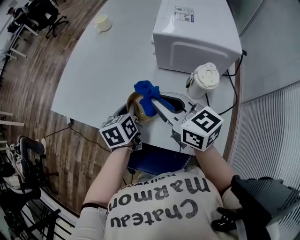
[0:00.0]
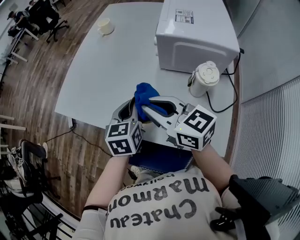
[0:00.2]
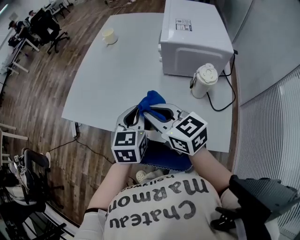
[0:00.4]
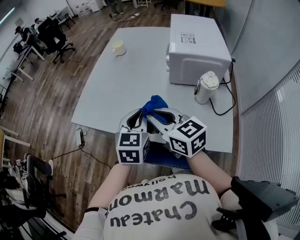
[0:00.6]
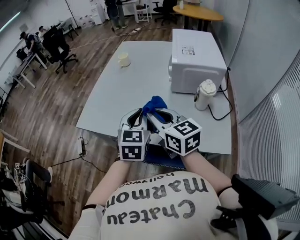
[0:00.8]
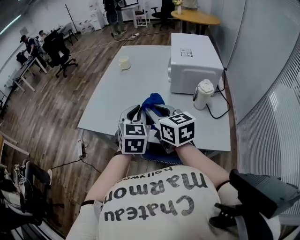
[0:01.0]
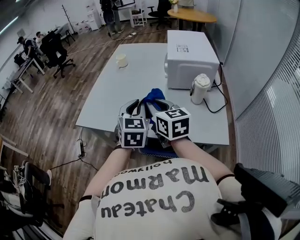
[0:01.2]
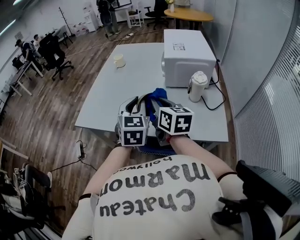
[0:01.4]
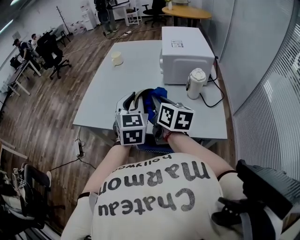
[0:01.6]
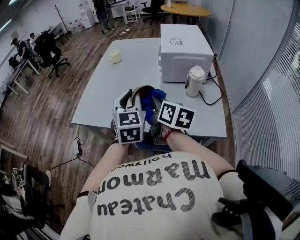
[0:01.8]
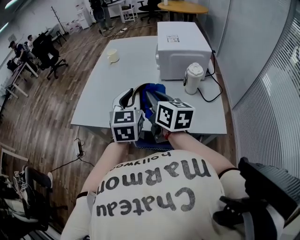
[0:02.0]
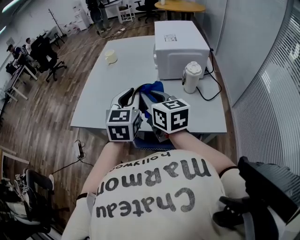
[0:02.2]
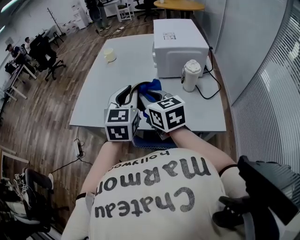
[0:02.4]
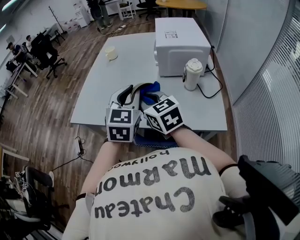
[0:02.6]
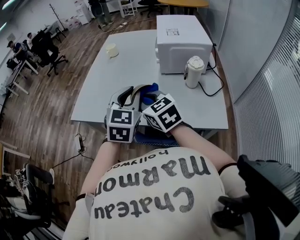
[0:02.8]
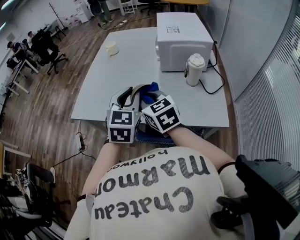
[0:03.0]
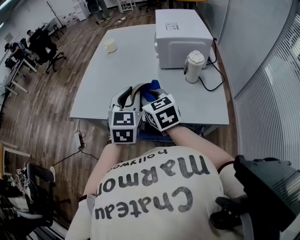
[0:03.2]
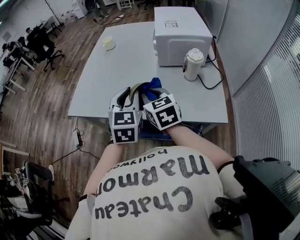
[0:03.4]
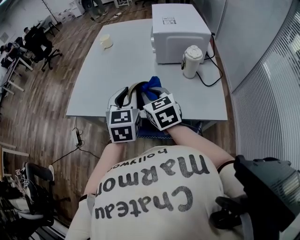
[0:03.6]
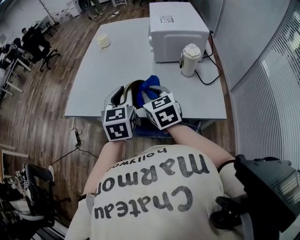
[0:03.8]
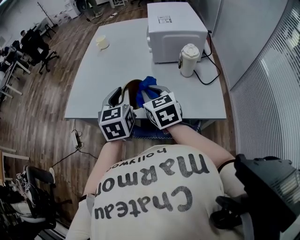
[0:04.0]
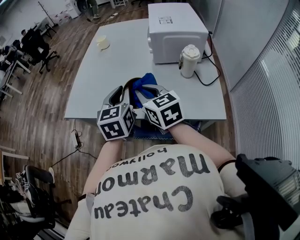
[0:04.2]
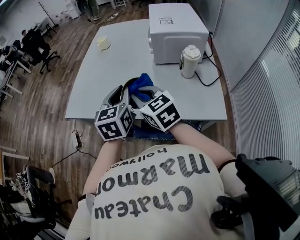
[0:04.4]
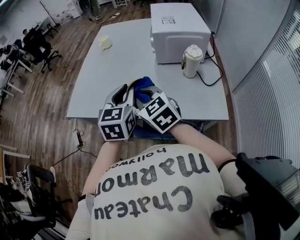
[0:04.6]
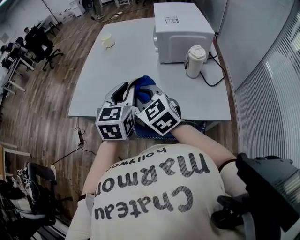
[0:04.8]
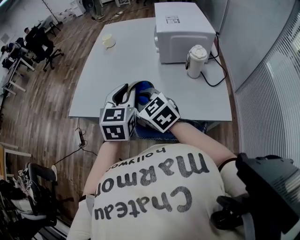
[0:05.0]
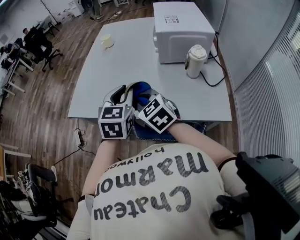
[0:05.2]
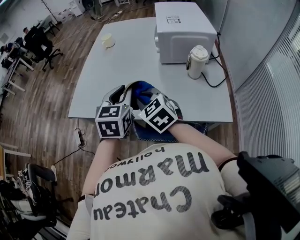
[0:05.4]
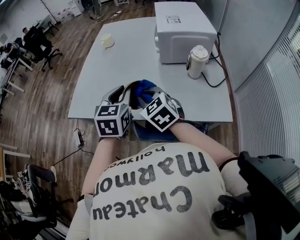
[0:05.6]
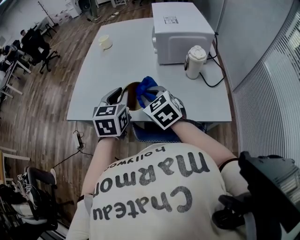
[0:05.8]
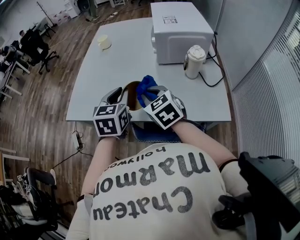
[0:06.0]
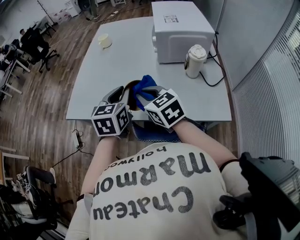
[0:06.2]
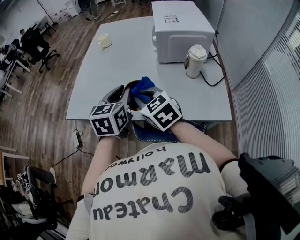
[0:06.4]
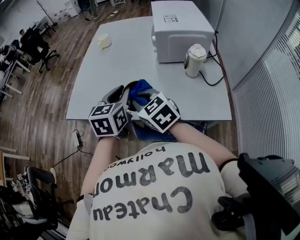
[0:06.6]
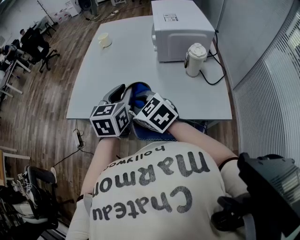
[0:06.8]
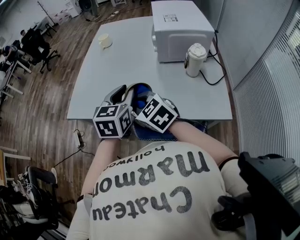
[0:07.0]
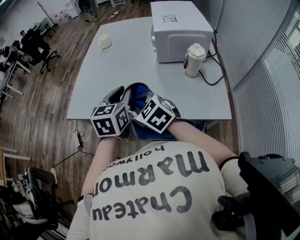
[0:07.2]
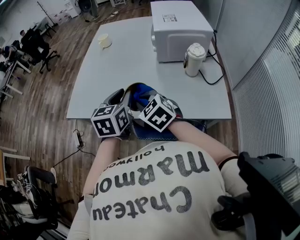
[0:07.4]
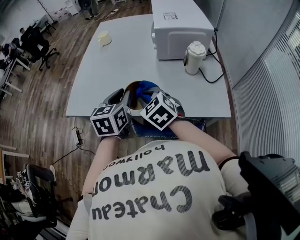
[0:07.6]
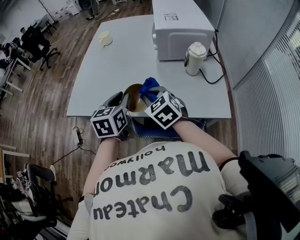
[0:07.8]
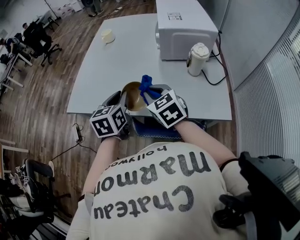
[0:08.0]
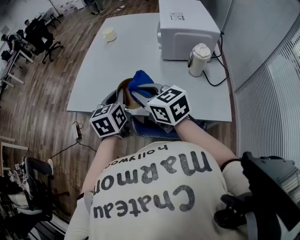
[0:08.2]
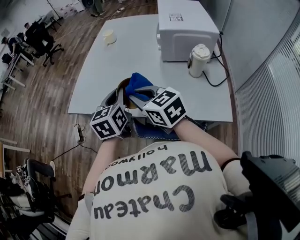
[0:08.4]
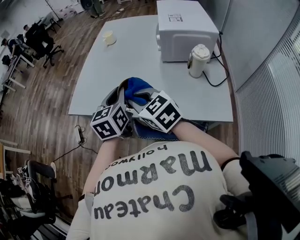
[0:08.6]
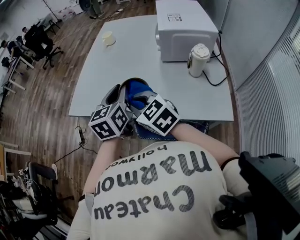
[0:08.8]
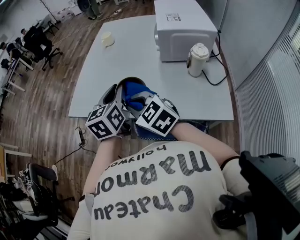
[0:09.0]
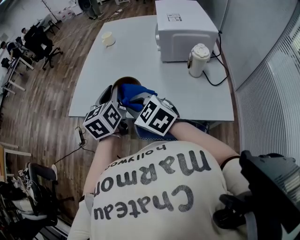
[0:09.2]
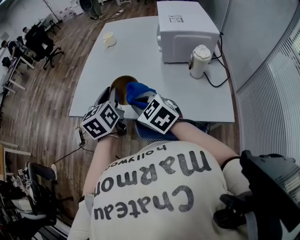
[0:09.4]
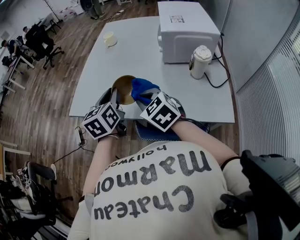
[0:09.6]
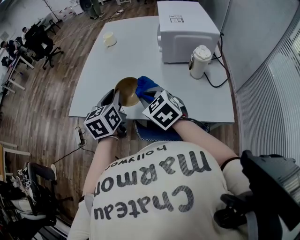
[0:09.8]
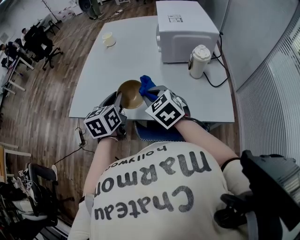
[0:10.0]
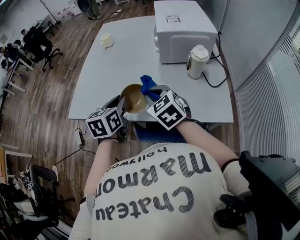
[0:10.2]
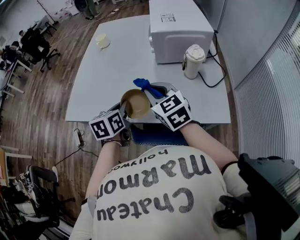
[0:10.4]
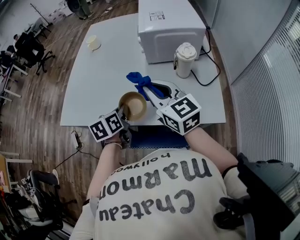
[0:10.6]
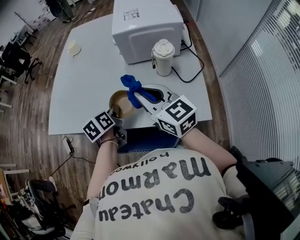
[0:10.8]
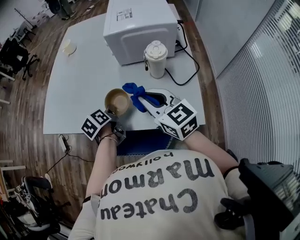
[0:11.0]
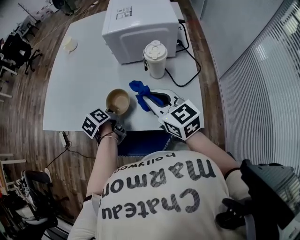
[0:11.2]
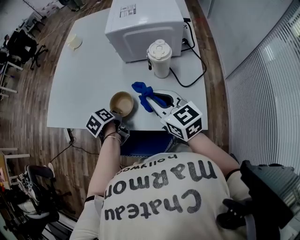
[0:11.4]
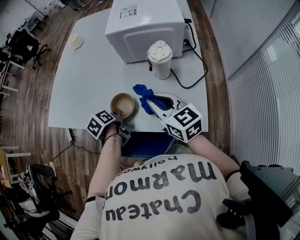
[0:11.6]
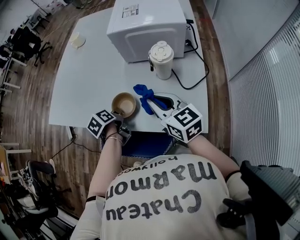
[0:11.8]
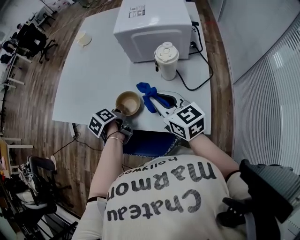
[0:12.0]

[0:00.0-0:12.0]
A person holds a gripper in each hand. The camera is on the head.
0:00.0 to 0:01.6: The right gripper goes approximately 10 cm to the left and backward, and turns by some 40 degrees, while the left gripper is displaced upward by approximately 20 cm, and rotates around the line of its fingers by roughly 40 degrees, clockwise from behind.
0:01.6 to 0:03.0: The right gripper travels to the left by about 5 cm, and turns by about 40 degrees.
0:03.0 to 0:04.4: The left gripper swivels roughly 20 degrees.
0:04.4 to 0:06.0: The right gripper shifts by about 5 cm.
0:07.6 to 0:09.0: The left gripper moves about 5 cm. The right gripper goes roughly 5 cm to the left.
0:09.0 to 0:10.4: The right gripper goes some 15 cm to the right, and changes its angle by approximately 20 degrees, while the left gripper moves downward, roughly 10 cm, and changes its angle by about 20 degrees.
0:10.4 to 0:12.0: The left gripper shifts some 15 cm downward and to the right, rotates around the line of its fingers by some 40 degrees, counterclockwise from behind, and opens up, while the right gripper is displaced to the right by roughly 15 cm, and changes its angle by some 20 degrees.

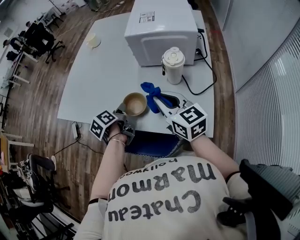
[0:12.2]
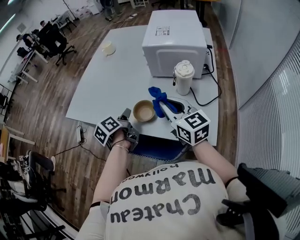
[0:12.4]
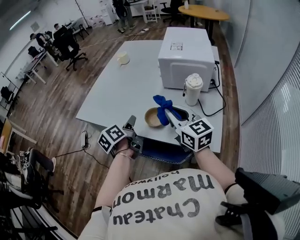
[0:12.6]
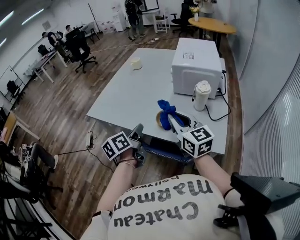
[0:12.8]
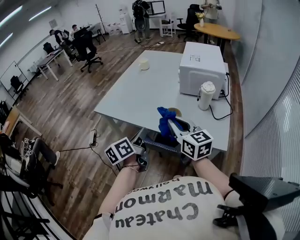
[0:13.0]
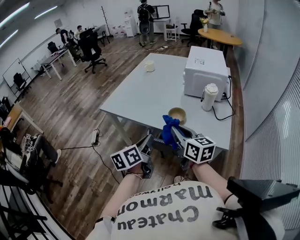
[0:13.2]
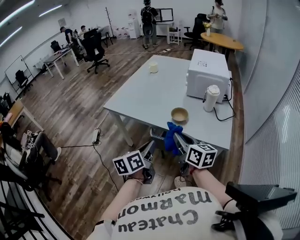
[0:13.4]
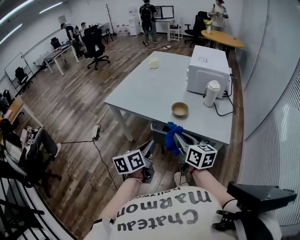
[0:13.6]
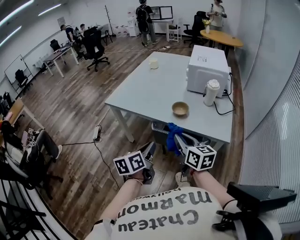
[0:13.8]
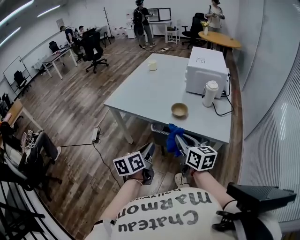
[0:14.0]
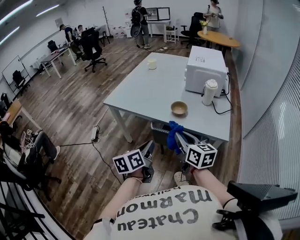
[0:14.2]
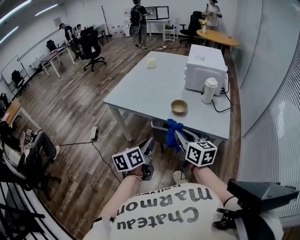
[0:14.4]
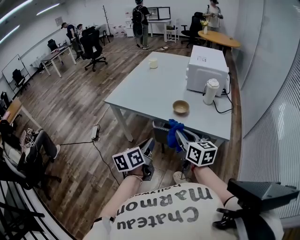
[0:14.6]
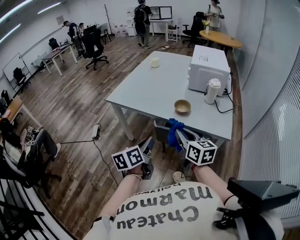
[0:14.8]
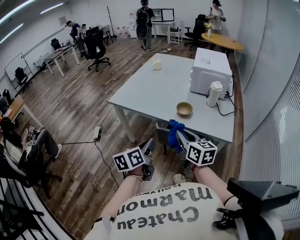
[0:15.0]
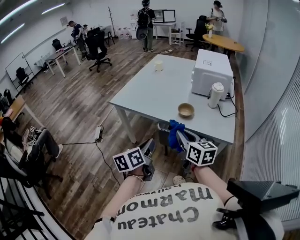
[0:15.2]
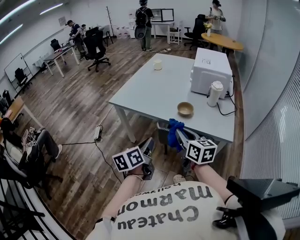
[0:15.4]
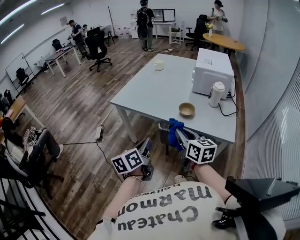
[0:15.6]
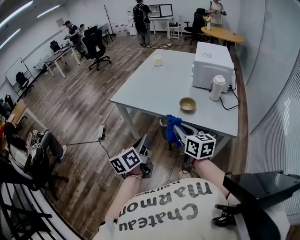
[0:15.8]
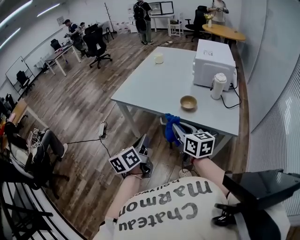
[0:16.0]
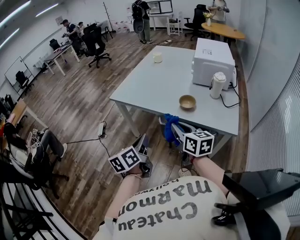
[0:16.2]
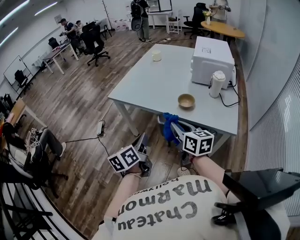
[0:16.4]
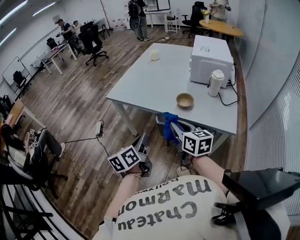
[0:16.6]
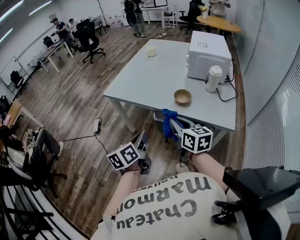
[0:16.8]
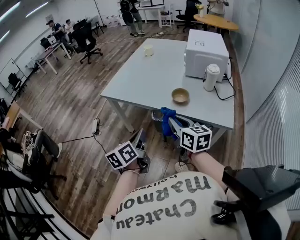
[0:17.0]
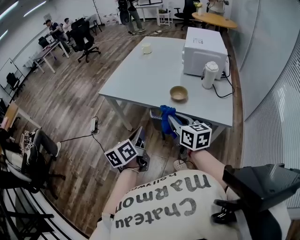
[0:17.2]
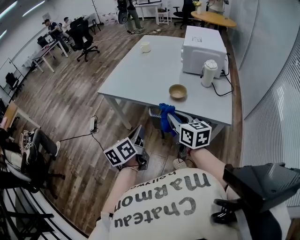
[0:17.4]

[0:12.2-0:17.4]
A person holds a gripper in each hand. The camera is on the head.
0:12.2 to 0:14.0: Both grippers move backward and to the left, some 30 cm. The left gripper changes its angle by about 30 degrees.
0:14.0 to 0:15.6: The right gripper ends up roughly 5 cm from where it was. Meanwhile the left gripper heads to the left, covering some 5 cm.
0:15.6 to 0:17.4: The grippers stay close to where they were, moving slightly.

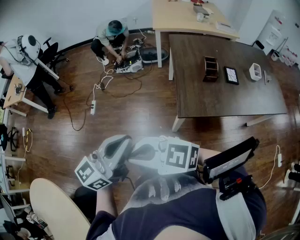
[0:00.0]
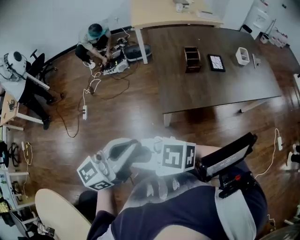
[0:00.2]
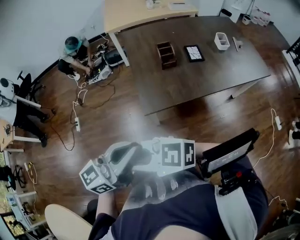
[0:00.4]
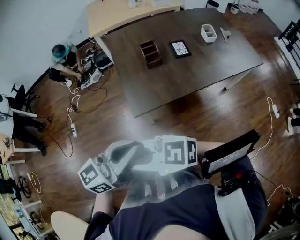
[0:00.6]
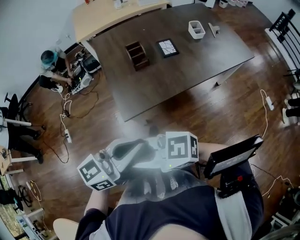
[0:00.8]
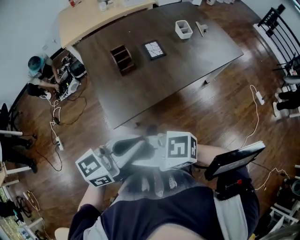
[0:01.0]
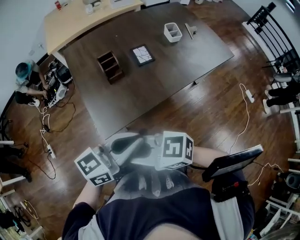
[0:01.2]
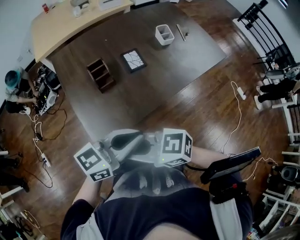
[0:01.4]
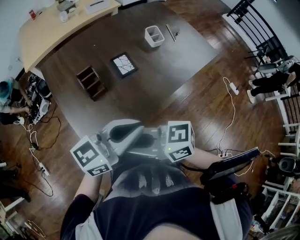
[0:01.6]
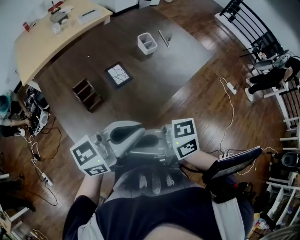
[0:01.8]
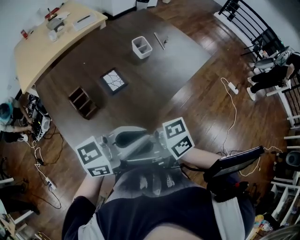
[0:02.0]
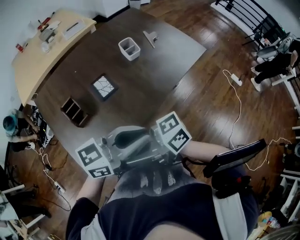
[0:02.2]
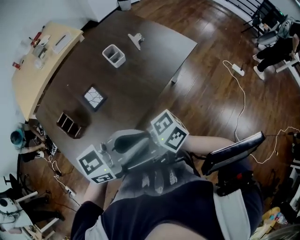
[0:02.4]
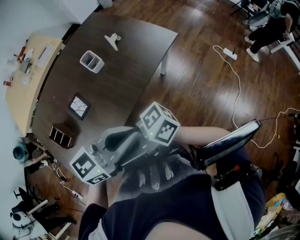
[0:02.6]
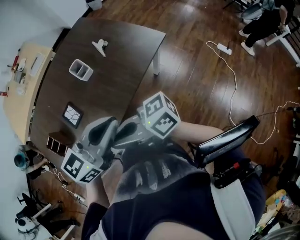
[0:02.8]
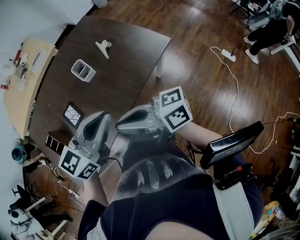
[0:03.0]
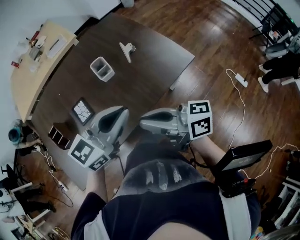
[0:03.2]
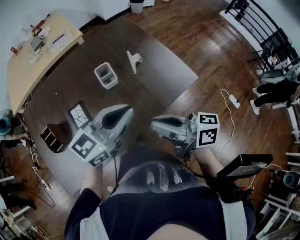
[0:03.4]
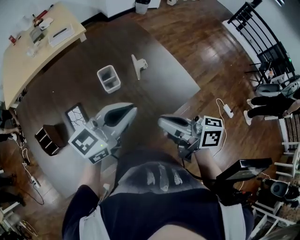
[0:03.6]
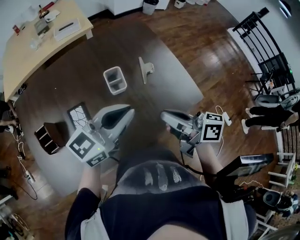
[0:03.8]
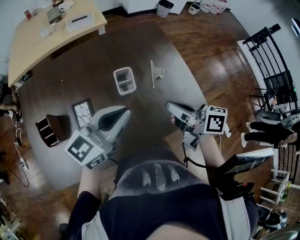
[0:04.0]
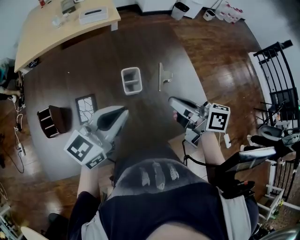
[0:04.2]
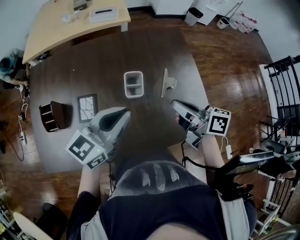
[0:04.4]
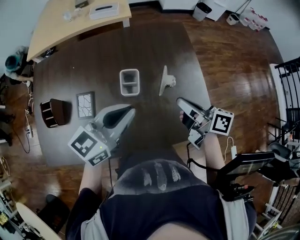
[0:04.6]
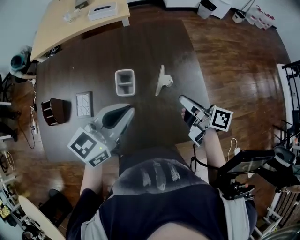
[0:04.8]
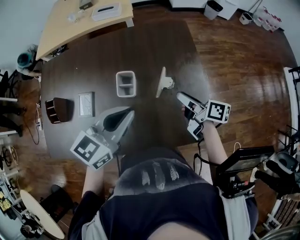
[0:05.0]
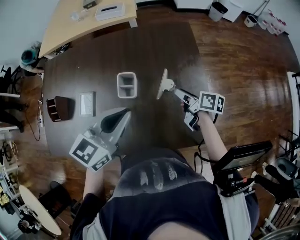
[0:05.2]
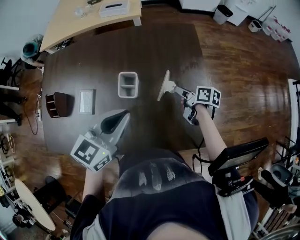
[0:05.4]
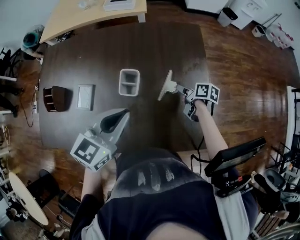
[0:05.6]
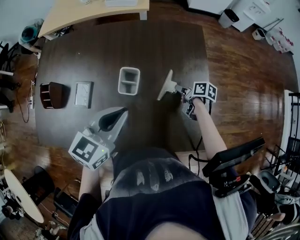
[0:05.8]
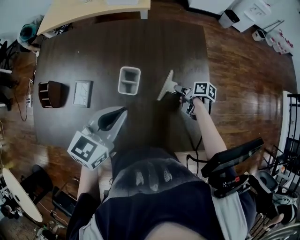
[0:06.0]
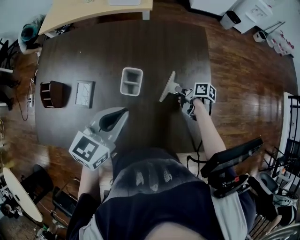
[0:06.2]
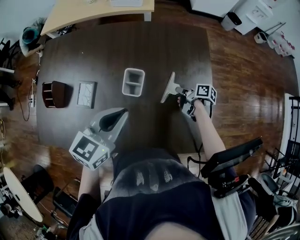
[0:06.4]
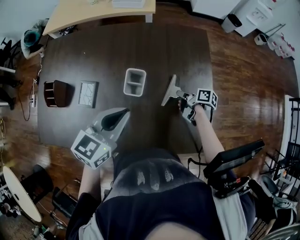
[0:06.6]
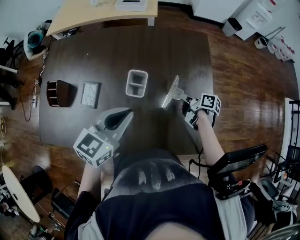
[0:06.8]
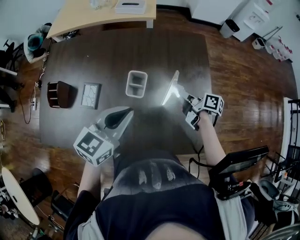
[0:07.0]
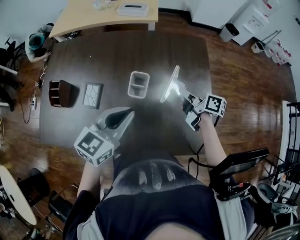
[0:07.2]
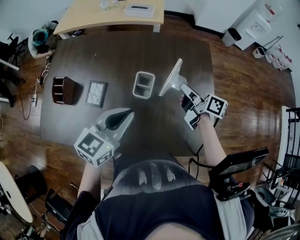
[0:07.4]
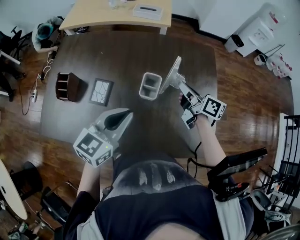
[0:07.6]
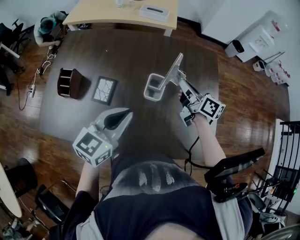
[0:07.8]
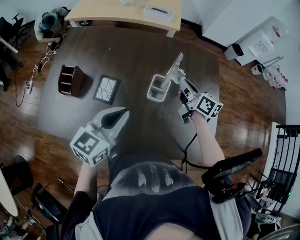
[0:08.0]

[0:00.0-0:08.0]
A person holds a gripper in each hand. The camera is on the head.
0:00.0 to 0:01.6: Both grippers are carried some 50 cm. The left gripper turns by about 50 degrees. The right gripper rotates approximately 50 degrees.
0:01.6 to 0:03.2: The two grippers travel together, about 50 cm. The right gripper changes its angle by roughly 30 degrees.
0:03.2 to 0:04.8: The right gripper moves forward and to the right, approximately 40 cm, and turns by some 30 degrees; the left gripper travels forward by about 25 cm, and turns by approximately 30 degrees.
0:04.8 to 0:06.4: The right gripper travels downward and forward by approximately 25 cm, swivels roughly 30 degrees, and opens and closes again; the left gripper changes place by approximately 5 cm.
0:06.4 to 0:08.0: The left gripper travels to the left by approximately 15 cm. Meanwhile the right gripper travels upward and to the left by about 25 cm, and rotates about 50 degrees.
